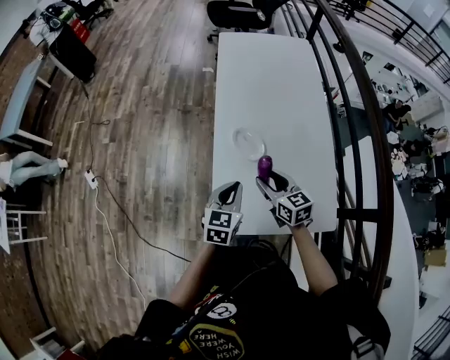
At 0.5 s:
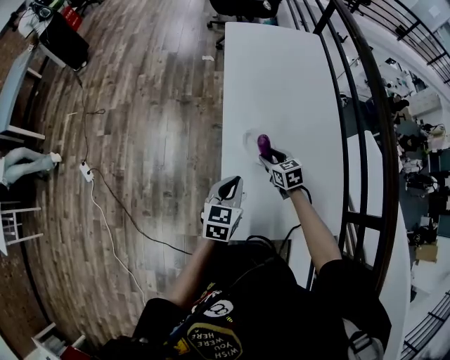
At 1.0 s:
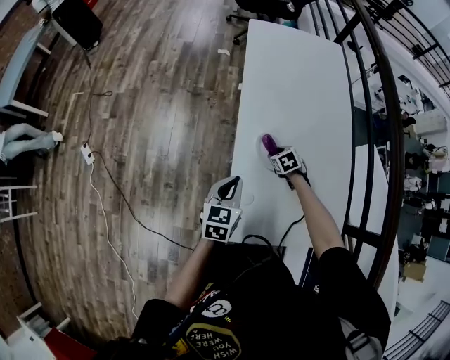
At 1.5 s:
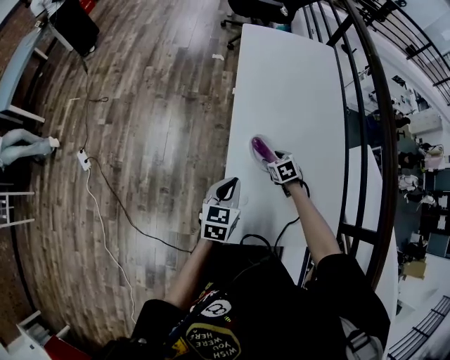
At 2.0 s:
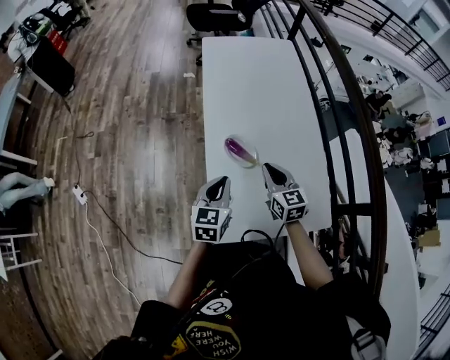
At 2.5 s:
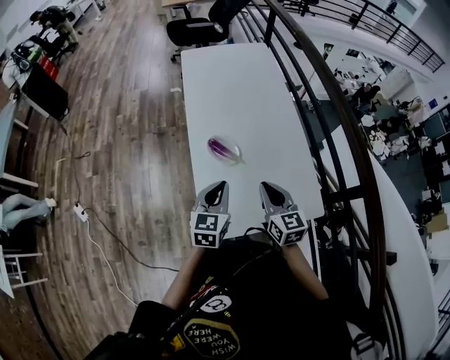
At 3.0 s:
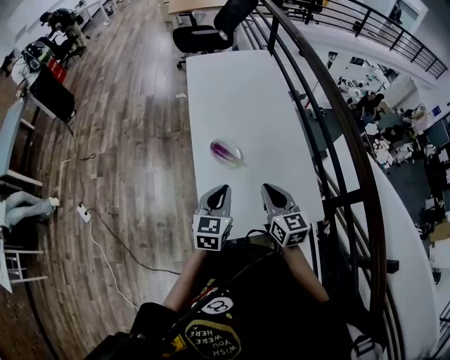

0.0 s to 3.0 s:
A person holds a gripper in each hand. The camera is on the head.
0.0 to 1.5 s: The right gripper travels downward and forward by about 25 cm, and tips its fingers downward by approximately 40 degrees, while the left gripper travels to the left and forward by some 10 cm.
1.5 to 3.0 s: The right gripper is displaced upward and backward by roughly 35 cm, tips its fingers upward by about 50 degrees, and closes up. Meanwhile the left gripper goes approximately 15 cm to the right, backward and upward.

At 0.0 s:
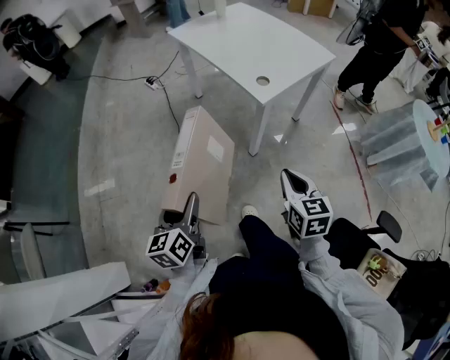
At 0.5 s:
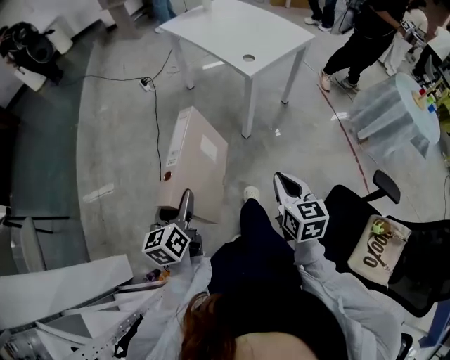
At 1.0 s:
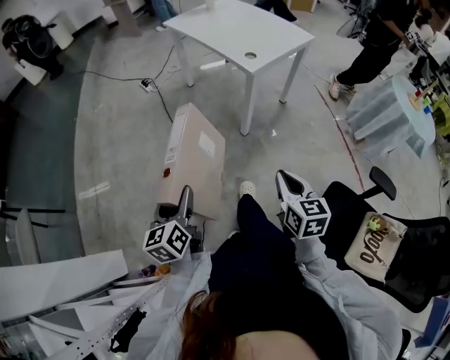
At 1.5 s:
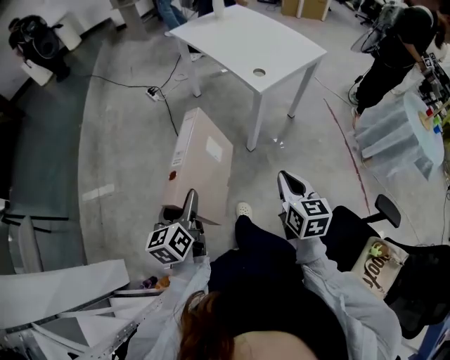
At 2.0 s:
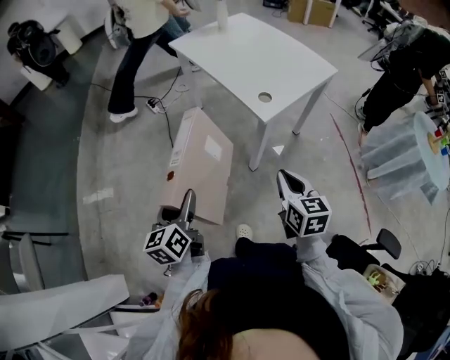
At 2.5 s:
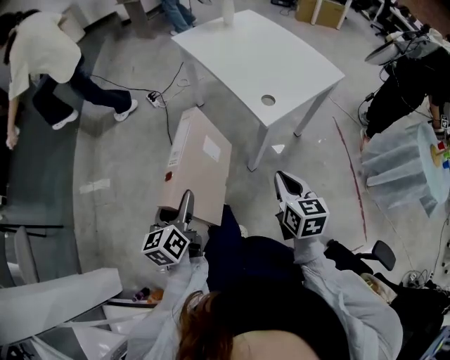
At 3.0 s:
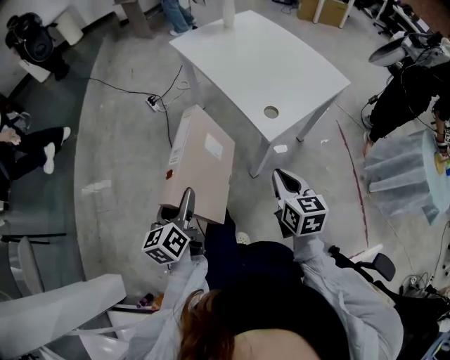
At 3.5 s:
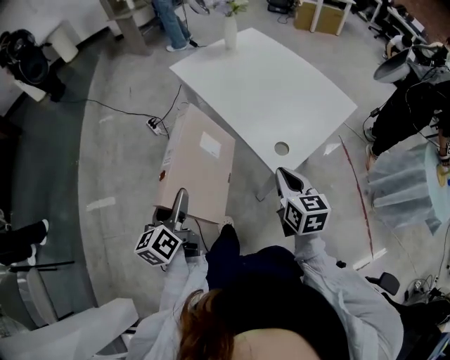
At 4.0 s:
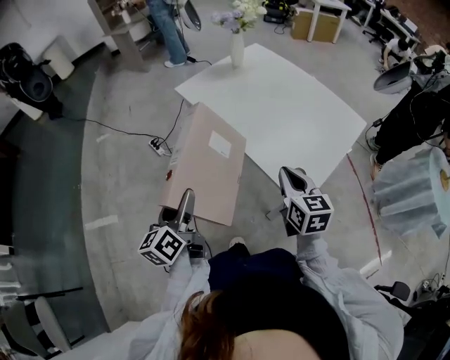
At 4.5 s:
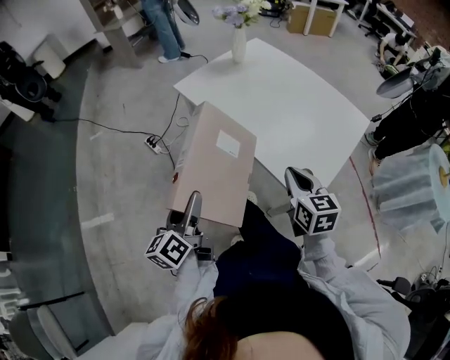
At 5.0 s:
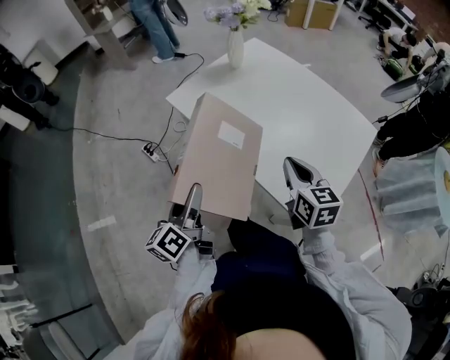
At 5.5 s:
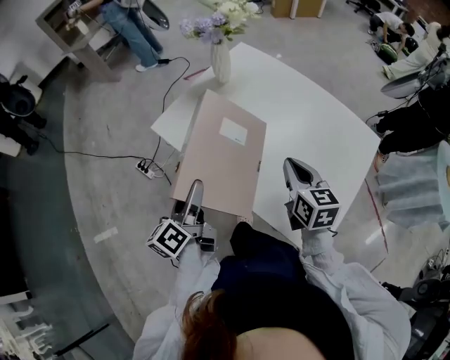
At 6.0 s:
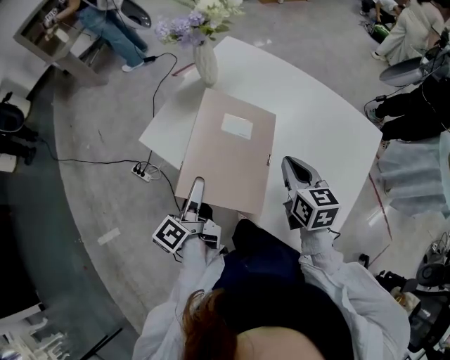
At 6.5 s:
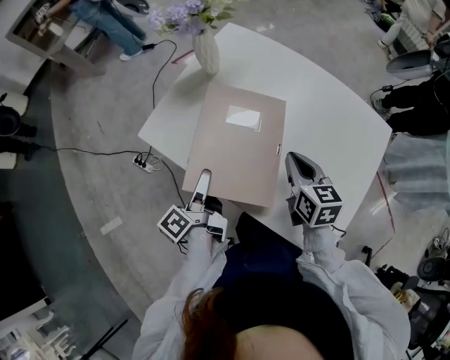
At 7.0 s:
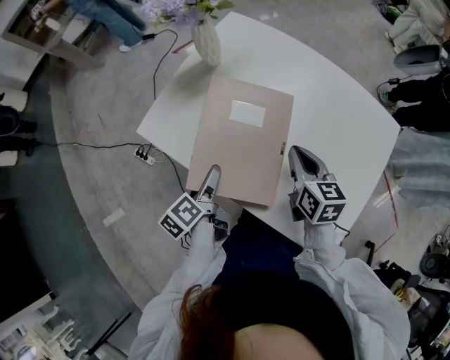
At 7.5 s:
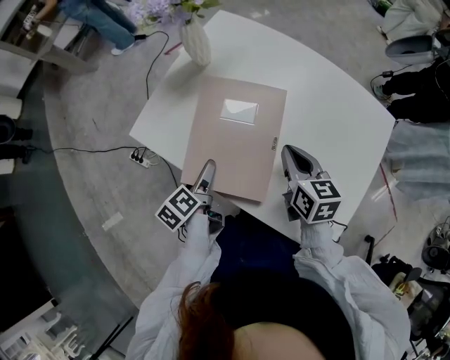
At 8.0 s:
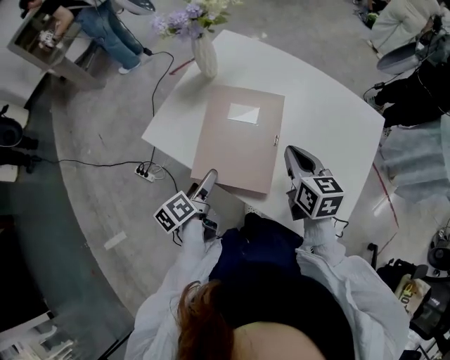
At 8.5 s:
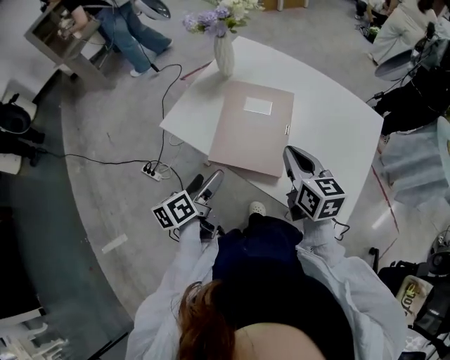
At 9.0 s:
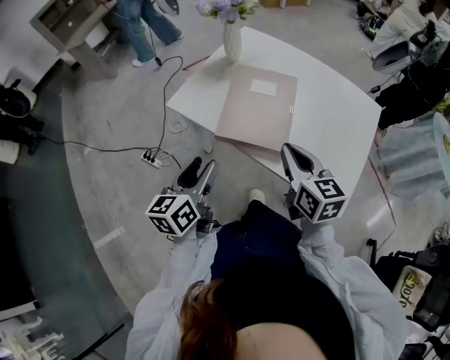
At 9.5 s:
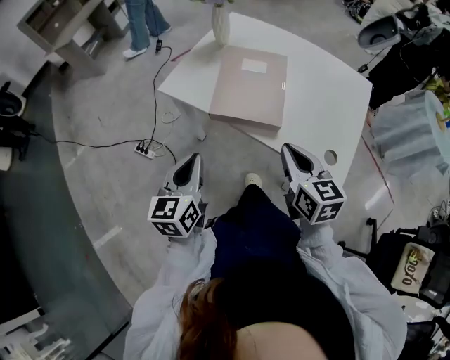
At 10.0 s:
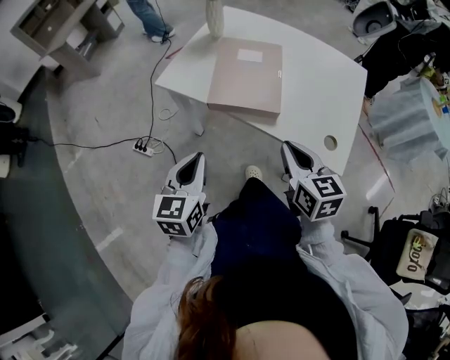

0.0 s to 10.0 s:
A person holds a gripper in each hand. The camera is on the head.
0.0 to 2.0 s: The right gripper travels backward and back again, some 20 cm each way; the left gripper travels backward and back again, roughly 15 cm each way.
2.0 to 4.0 s: The two grippers go approximately 35 cm forward.
4.0 to 6.0 s: Both grippers travel together forward, approximately 35 cm. The left gripper turns by approximately 30 degrees.
6.0 to 8.0 s: The left gripper heads downward, covering some 10 cm, swivels about 30 degrees, and opens.
8.0 to 10.0 s: The right gripper shifts roughly 25 cm backward. Meanwhile the left gripper shifts roughly 25 cm backward and upward, twists some 60 degrees clockwise, seen from behind, and closes up.

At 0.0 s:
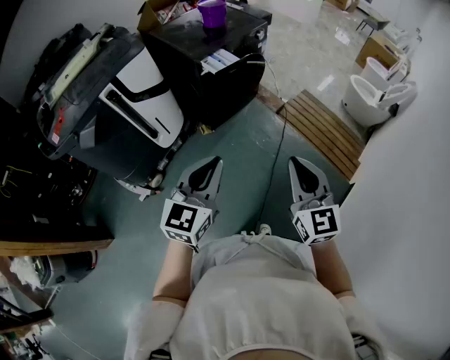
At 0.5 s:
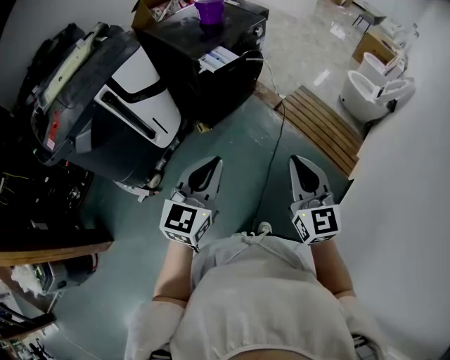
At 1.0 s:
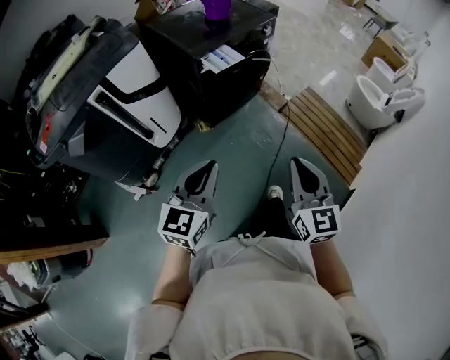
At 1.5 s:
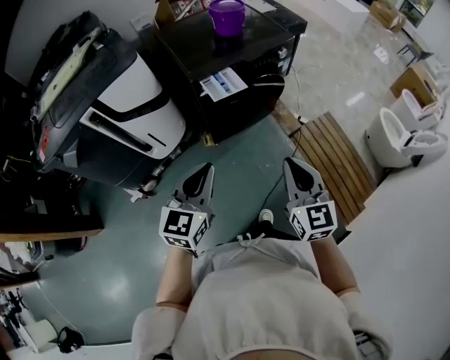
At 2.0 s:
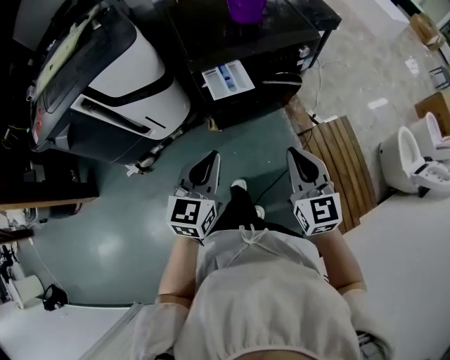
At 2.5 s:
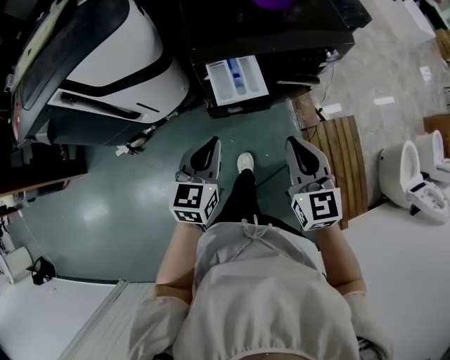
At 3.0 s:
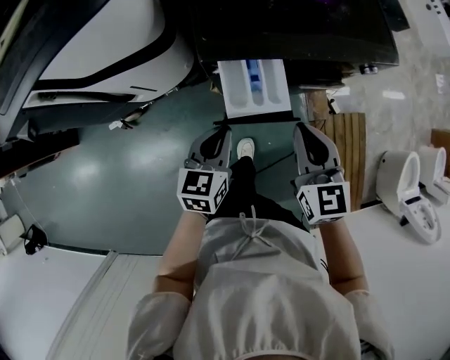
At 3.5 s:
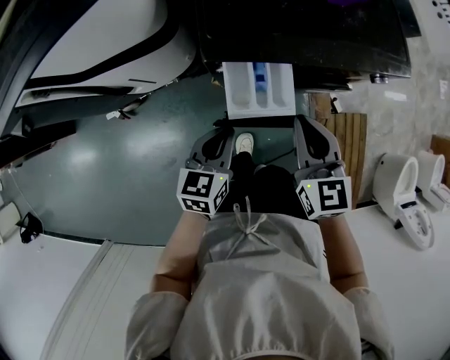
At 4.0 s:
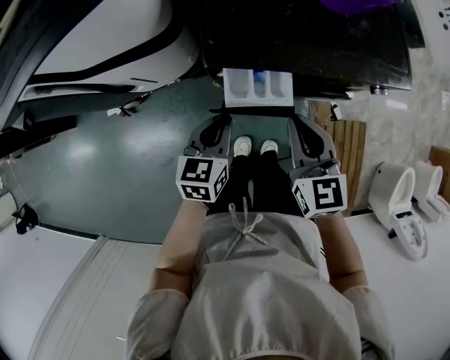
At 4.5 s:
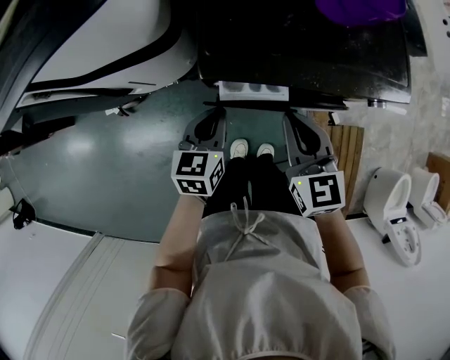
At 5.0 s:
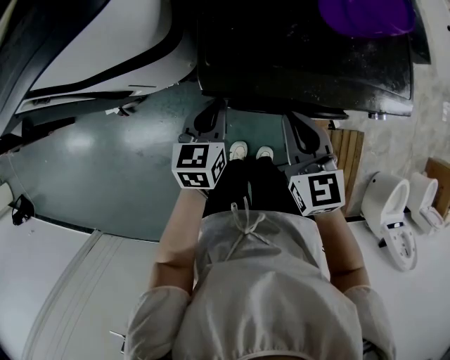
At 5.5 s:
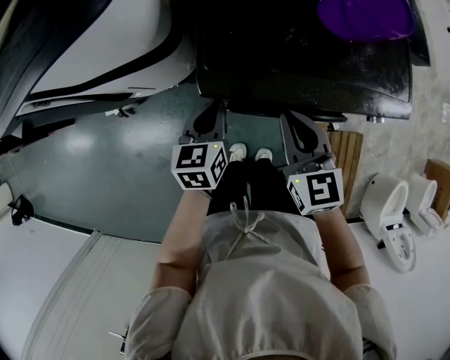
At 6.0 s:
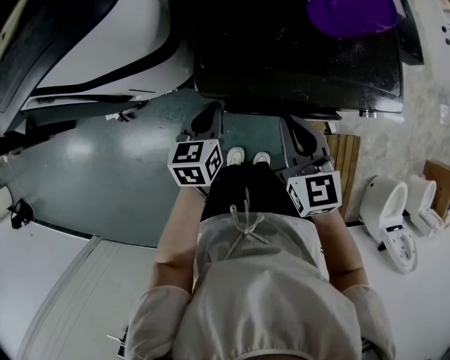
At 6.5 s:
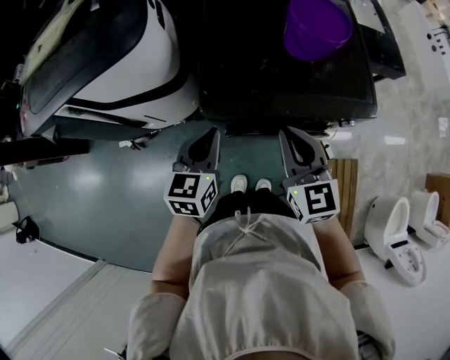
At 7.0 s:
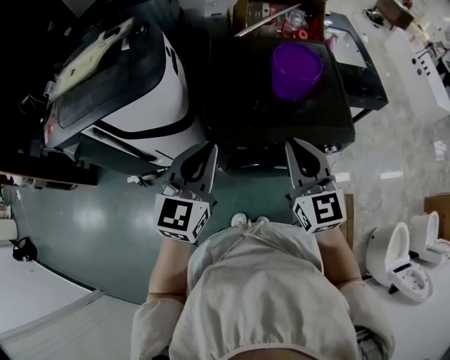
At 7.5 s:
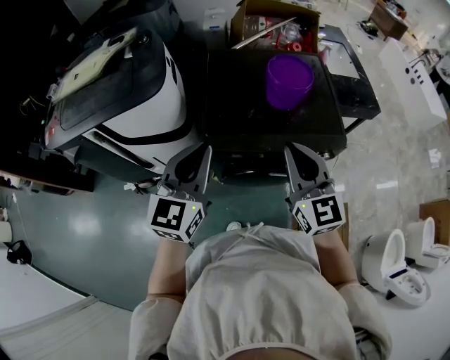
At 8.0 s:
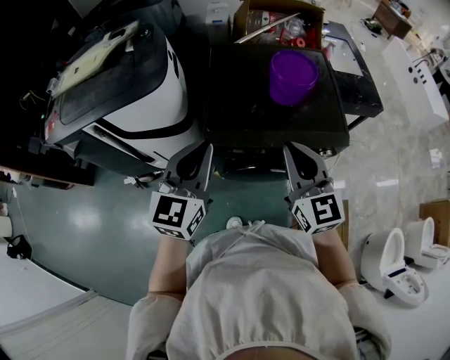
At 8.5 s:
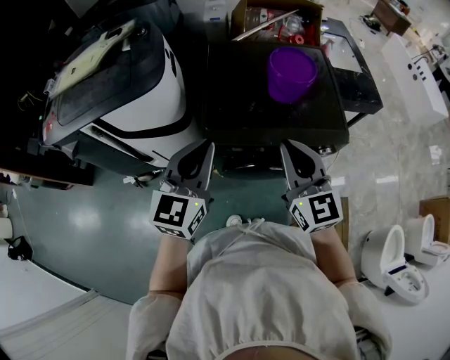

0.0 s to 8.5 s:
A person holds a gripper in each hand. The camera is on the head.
0.0 to 2.0 s: The right gripper ends up some 50 cm from where it was, and swivels approximately 30 degrees, while the left gripper changes place by about 40 cm, and turns by roughly 30 degrees.
2.0 to 4.0 s: The grippers both shift forward and downward by roughly 35 cm. The left gripper rotates roughly 30 degrees; the right gripper rotates some 20 degrees.
4.0 to 6.5 s: Both grippers travel together upward, approximately 15 cm.
6.5 to 8.5 s: The two grippers go roughly 15 cm upward. The left gripper changes its angle by about 20 degrees.

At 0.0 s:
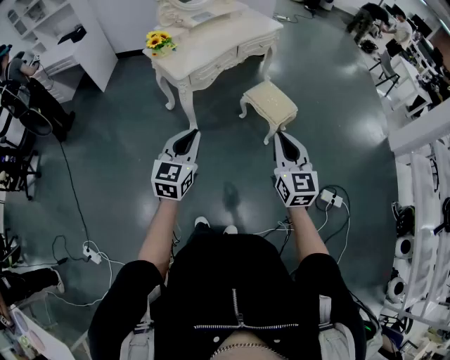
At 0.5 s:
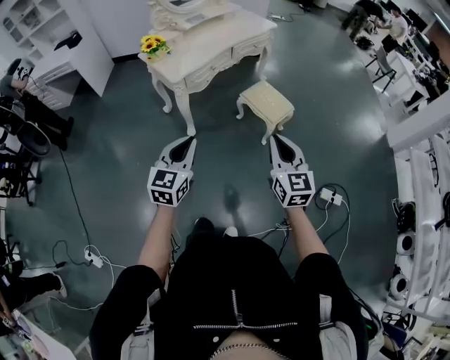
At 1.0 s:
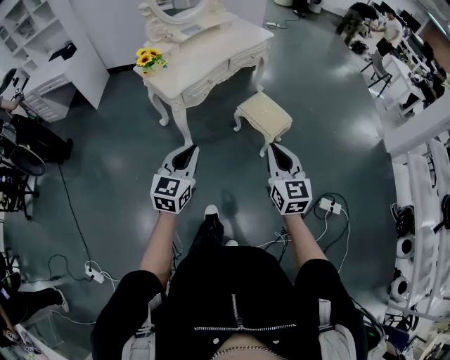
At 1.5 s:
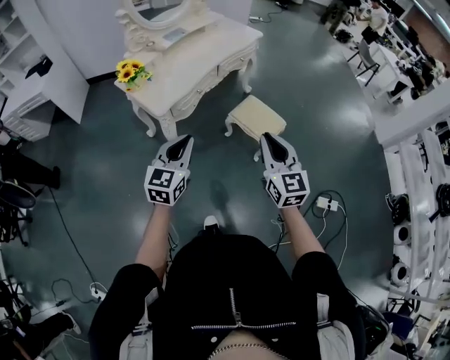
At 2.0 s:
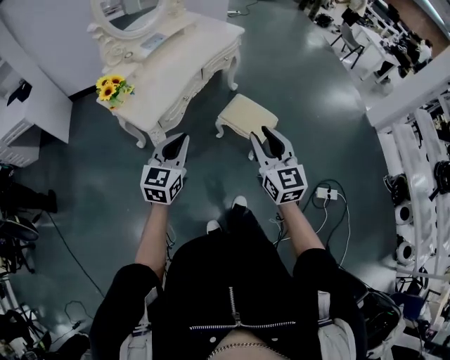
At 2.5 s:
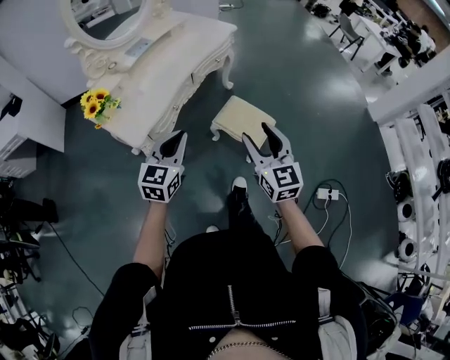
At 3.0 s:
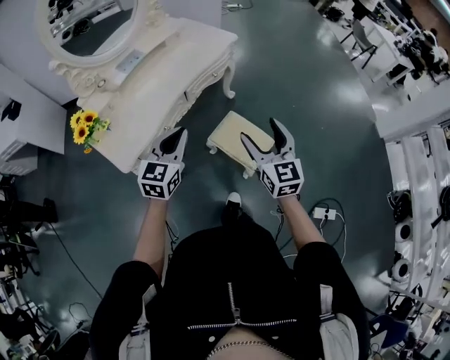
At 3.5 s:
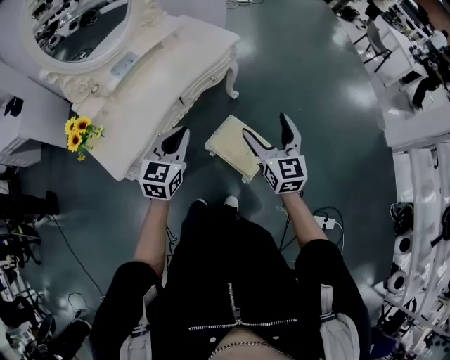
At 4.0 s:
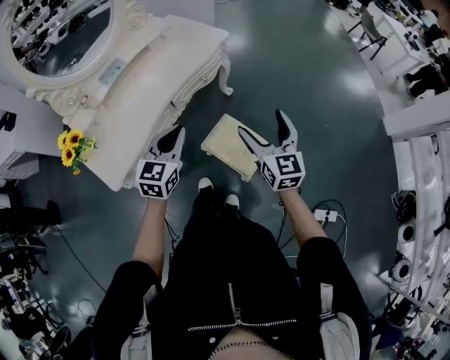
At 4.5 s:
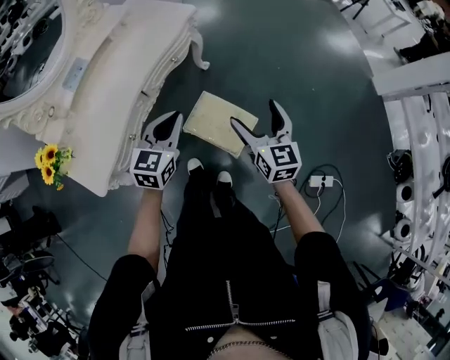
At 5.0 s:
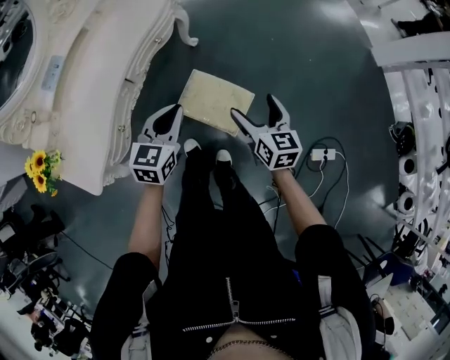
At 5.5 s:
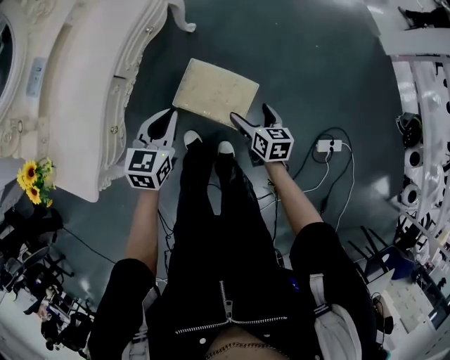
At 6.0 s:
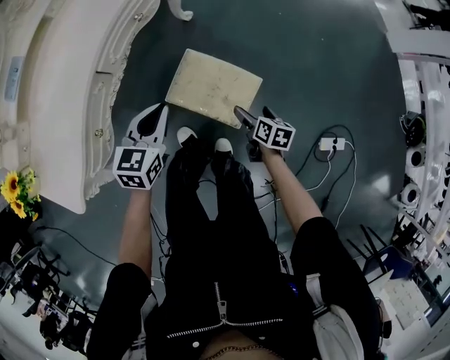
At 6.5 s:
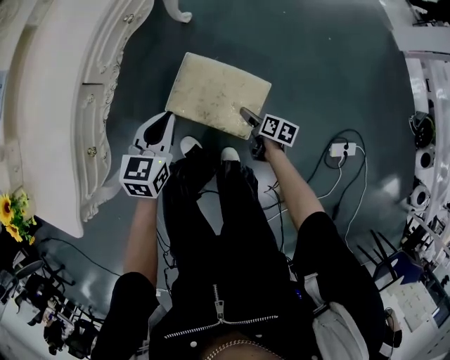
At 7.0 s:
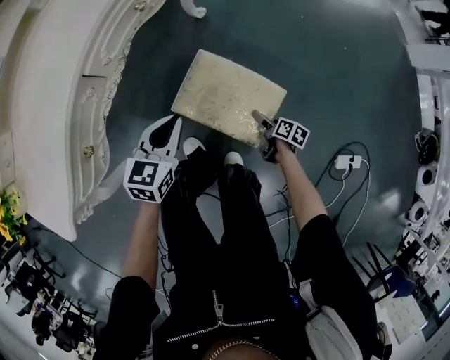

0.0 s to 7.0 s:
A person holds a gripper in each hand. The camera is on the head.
0.0 to 2.0 s: The two grippers go approximately 25 cm forward.
2.0 to 3.5 s: Both grippers move forward and to the right, about 35 cm. The right gripper opens up.
3.5 to 5.0 s: The left gripper shifts approximately 15 cm downward, to the right and forward, and changes its angle by roughly 20 degrees. The right gripper travels downward and to the right by some 20 cm, and rotates some 30 degrees.
5.0 to 7.0 s: The left gripper heads downward, covering roughly 25 cm; the right gripper is displaced downward by roughly 50 cm, and rolls clockwise, seen from behind, by roughly 40 degrees.
